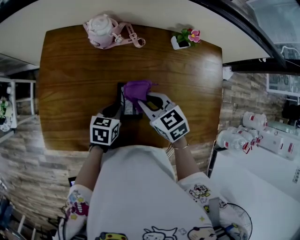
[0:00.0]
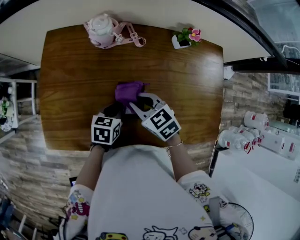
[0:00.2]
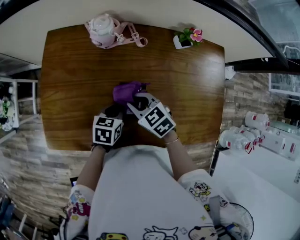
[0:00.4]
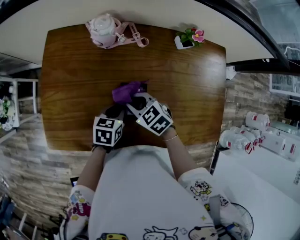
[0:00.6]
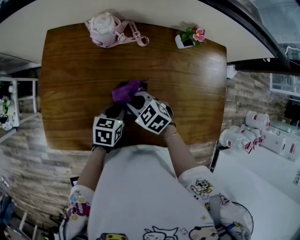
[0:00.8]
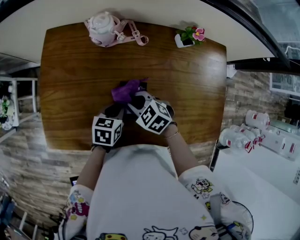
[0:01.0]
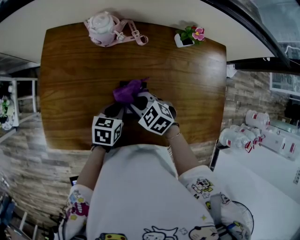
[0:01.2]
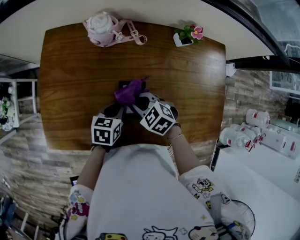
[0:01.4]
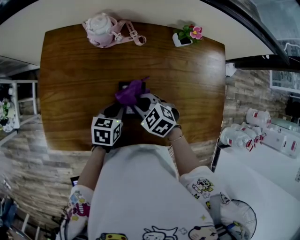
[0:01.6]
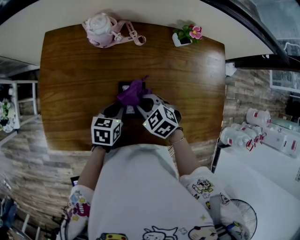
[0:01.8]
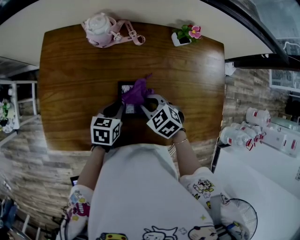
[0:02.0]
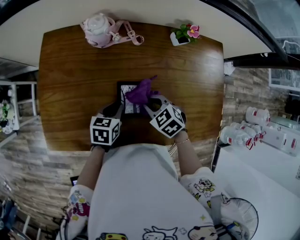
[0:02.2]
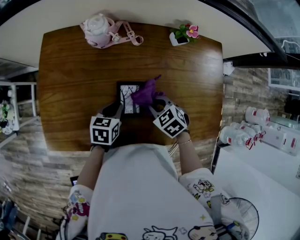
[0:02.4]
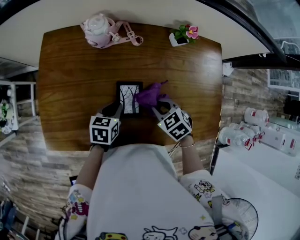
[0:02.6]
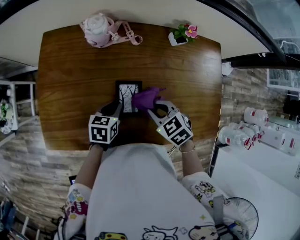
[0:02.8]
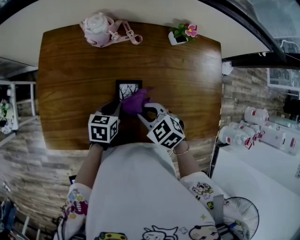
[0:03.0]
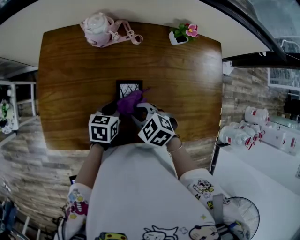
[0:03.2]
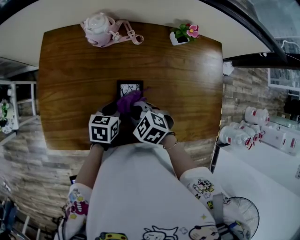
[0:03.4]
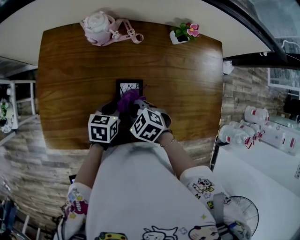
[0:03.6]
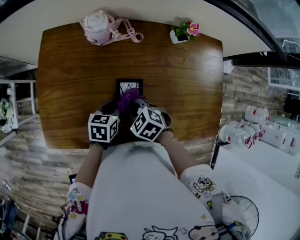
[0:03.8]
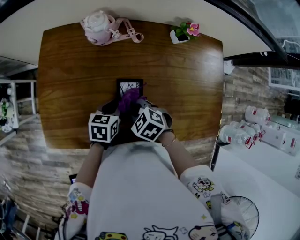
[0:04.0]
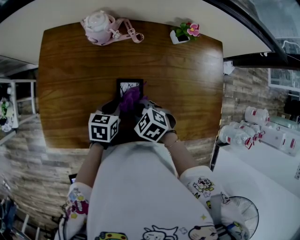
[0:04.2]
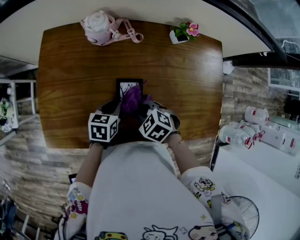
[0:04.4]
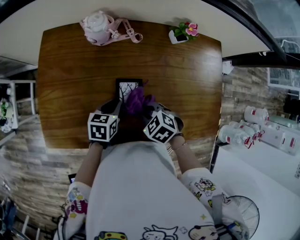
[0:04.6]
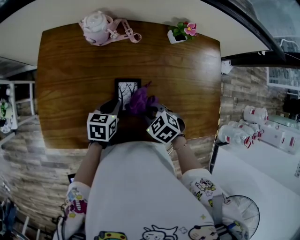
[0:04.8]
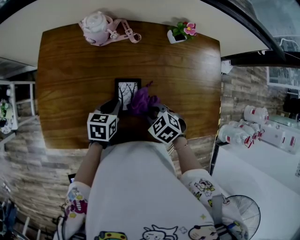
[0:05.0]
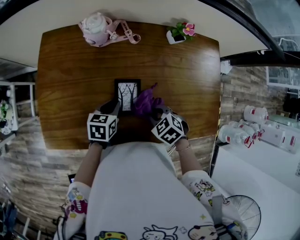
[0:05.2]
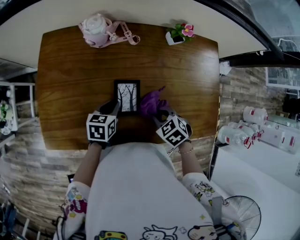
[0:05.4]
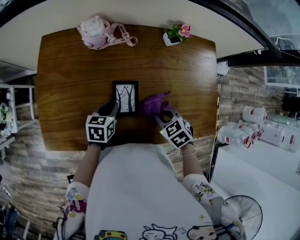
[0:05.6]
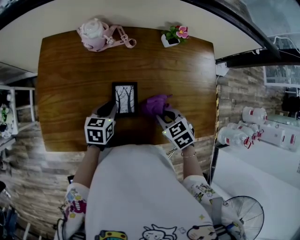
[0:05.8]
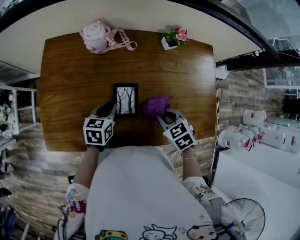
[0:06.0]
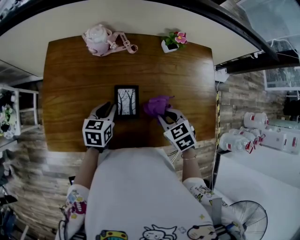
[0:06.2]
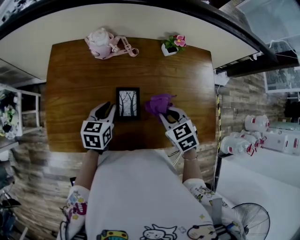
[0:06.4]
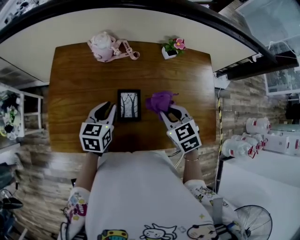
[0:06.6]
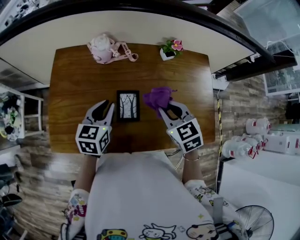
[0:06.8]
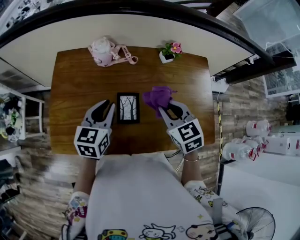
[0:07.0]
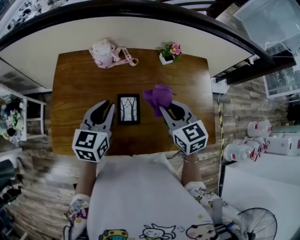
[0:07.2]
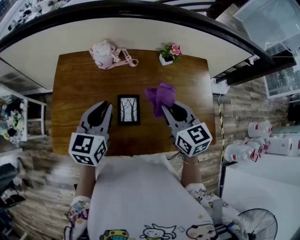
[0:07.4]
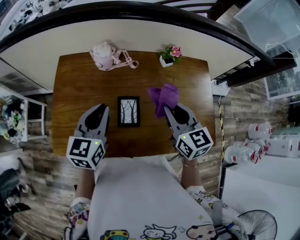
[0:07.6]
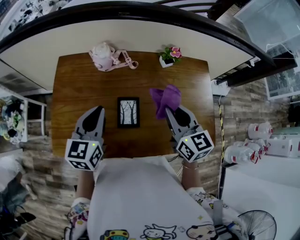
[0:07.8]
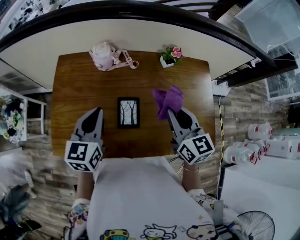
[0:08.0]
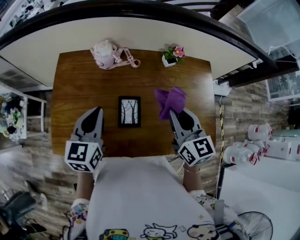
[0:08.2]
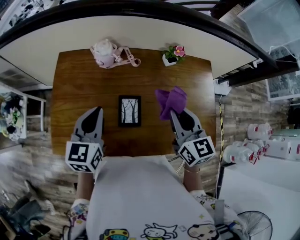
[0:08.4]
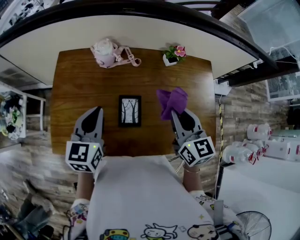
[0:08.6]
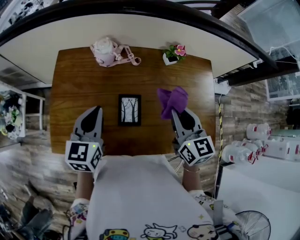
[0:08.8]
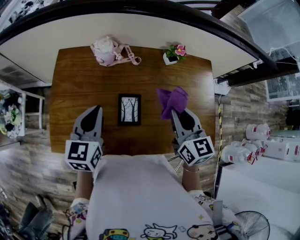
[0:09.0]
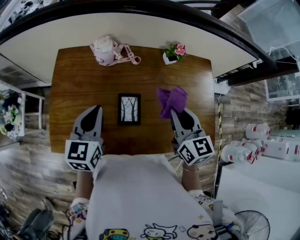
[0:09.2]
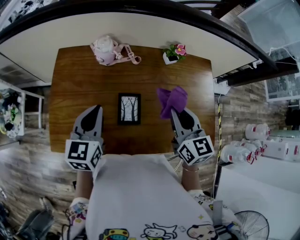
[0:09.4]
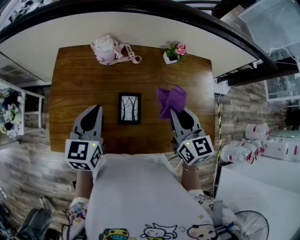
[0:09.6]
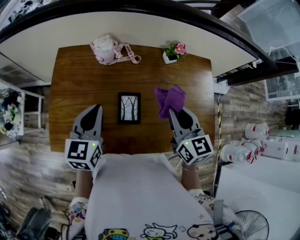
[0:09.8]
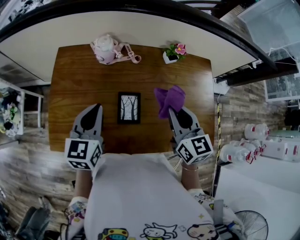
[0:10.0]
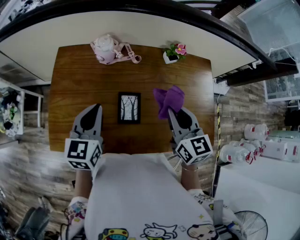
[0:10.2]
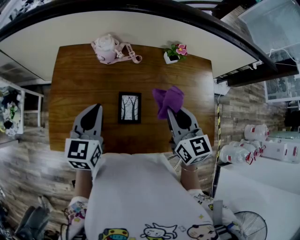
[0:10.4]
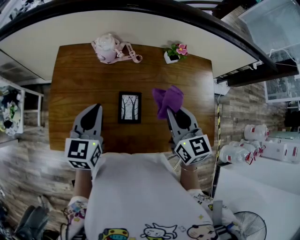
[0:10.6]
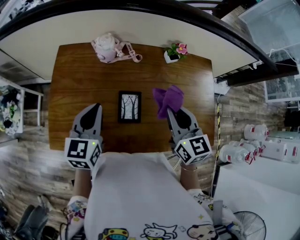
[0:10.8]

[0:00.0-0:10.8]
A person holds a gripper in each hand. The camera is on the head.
0:00.0 to 0:01.6: The right gripper moves downward, some 5 cm, and turns by some 20 degrees.
0:01.6 to 0:03.0: The right gripper moves about 10 cm to the right and comes back.
0:03.0 to 0:04.6: The right gripper changes place by roughly 5 cm.
0:04.6 to 0:06.2: The right gripper shifts approximately 10 cm to the right and upward, and swivels about 20 degrees. Meanwhile the left gripper shifts by some 5 cm.
0:06.2 to 0:07.8: The two grippers go about 20 cm upward. The right gripper points its fingers some 40 degrees further upward. The left gripper rotates roughly 20 degrees.
0:07.8 to 0:10.8: The grippers make only small movements.

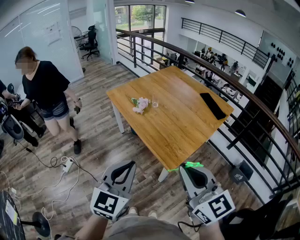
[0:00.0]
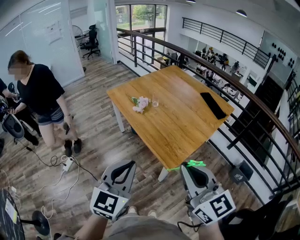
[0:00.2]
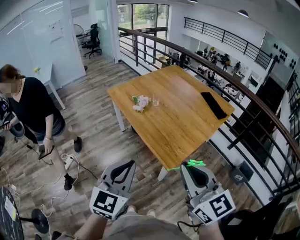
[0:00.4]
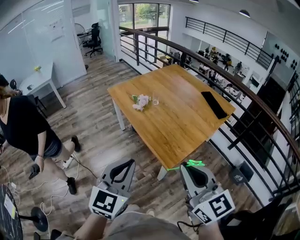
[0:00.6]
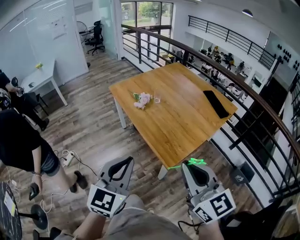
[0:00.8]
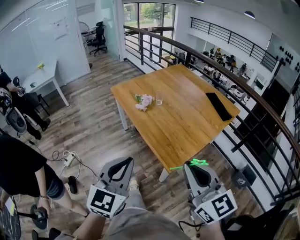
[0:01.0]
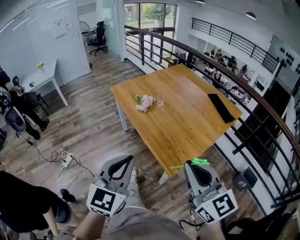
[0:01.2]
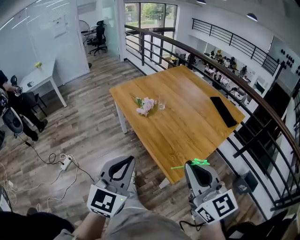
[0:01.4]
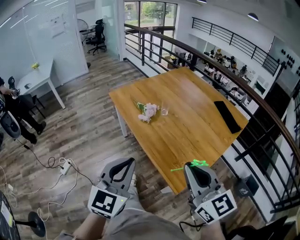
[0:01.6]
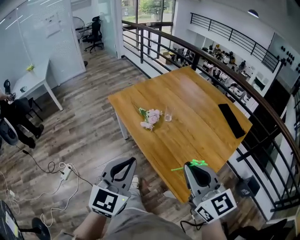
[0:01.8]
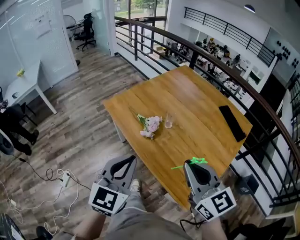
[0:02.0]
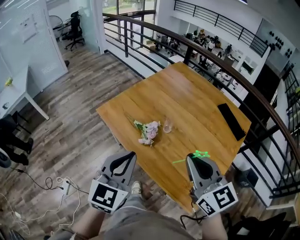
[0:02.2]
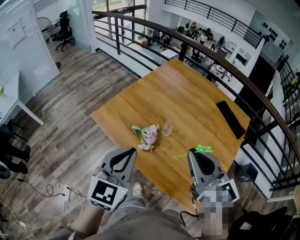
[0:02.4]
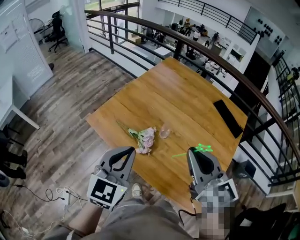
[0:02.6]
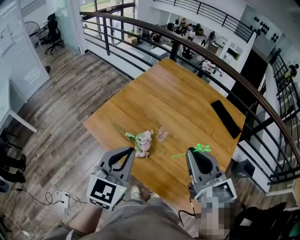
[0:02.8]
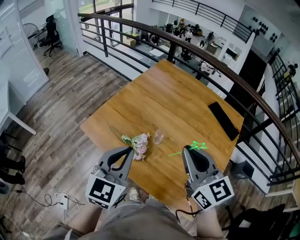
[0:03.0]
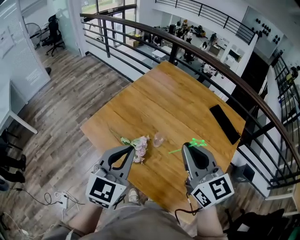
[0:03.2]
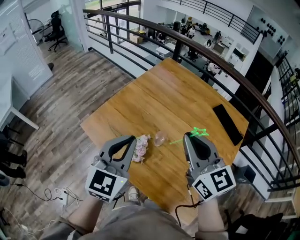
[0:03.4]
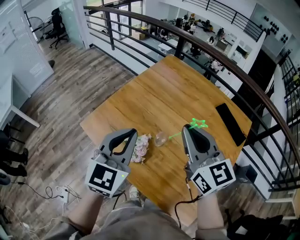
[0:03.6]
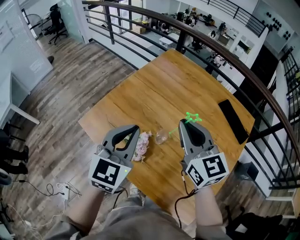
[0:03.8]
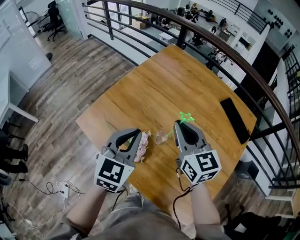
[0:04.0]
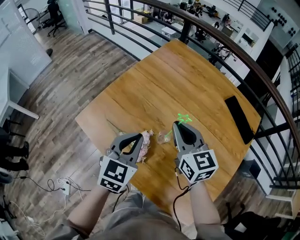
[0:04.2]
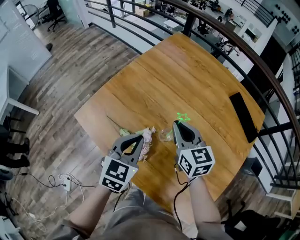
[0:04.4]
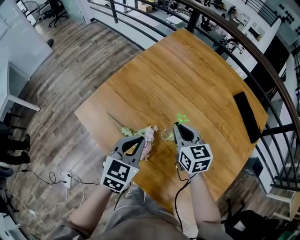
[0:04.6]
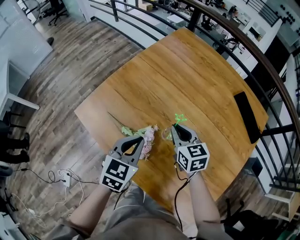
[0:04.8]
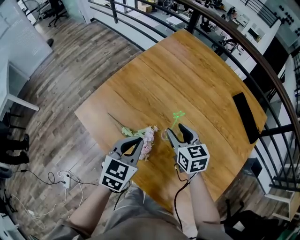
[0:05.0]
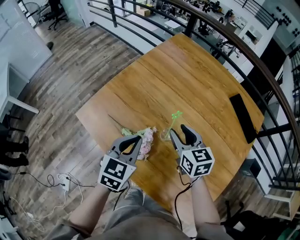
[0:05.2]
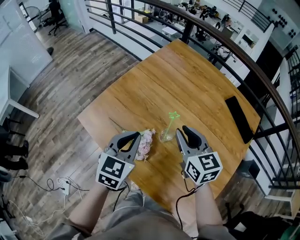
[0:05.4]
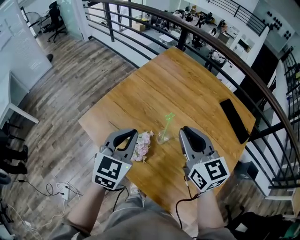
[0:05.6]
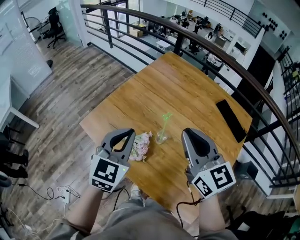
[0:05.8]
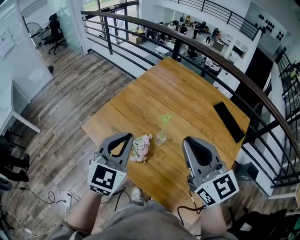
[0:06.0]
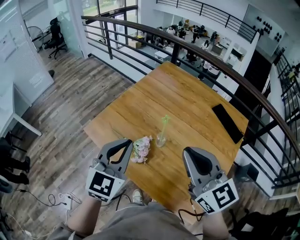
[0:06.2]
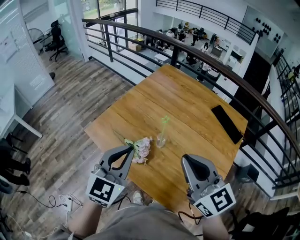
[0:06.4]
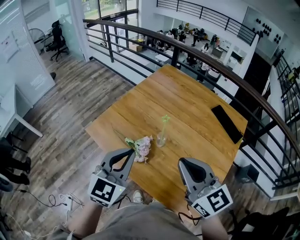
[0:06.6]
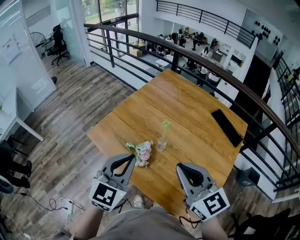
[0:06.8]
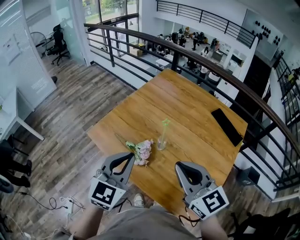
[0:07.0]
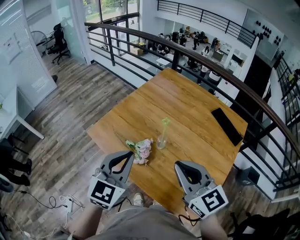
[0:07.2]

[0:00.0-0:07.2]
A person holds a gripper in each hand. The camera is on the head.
0:00.0 to 0:01.4: Both grippers travel together forward, roughly 10 cm.
0:01.4 to 0:02.8: The pair of grippers is taken forward, roughly 40 cm. The left gripper rotates some 20 degrees. Meanwhile the right gripper swivels some 20 degrees.
0:02.8 to 0:04.4: The right gripper shifts about 25 cm forward and downward, while the left gripper travels downward and forward by some 20 cm.
0:04.4 to 0:05.8: The right gripper goes roughly 20 cm upward and backward, and opens, then closes again, while the left gripper heads upward, covering about 10 cm.
0:05.8 to 0:07.2: The two grippers go roughly 10 cm backward.

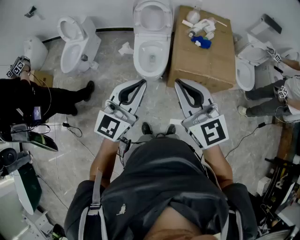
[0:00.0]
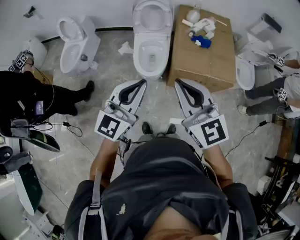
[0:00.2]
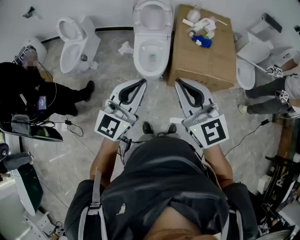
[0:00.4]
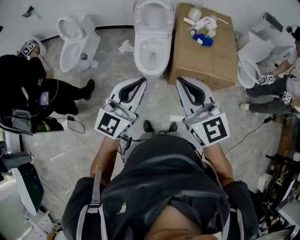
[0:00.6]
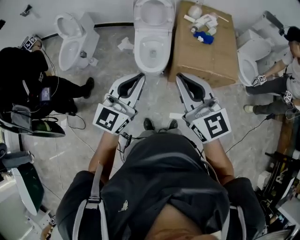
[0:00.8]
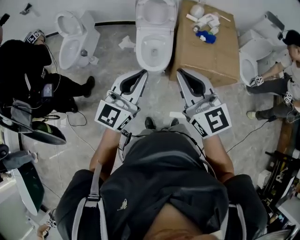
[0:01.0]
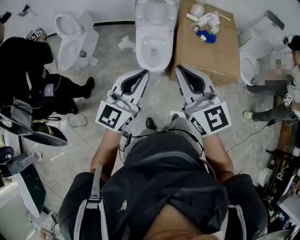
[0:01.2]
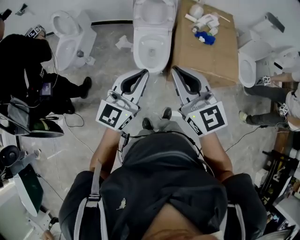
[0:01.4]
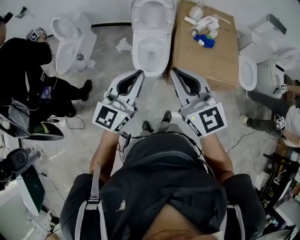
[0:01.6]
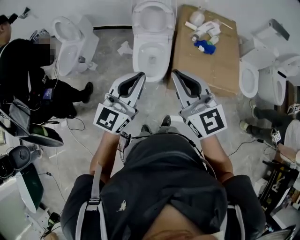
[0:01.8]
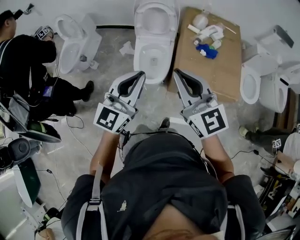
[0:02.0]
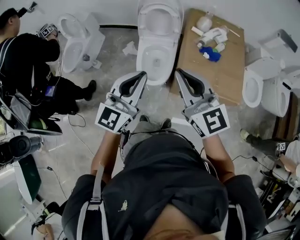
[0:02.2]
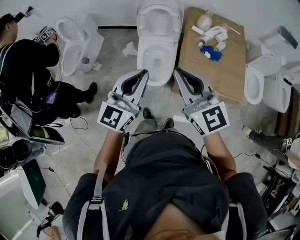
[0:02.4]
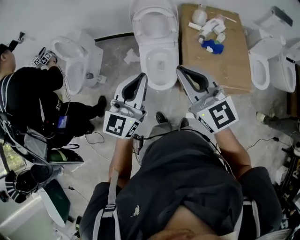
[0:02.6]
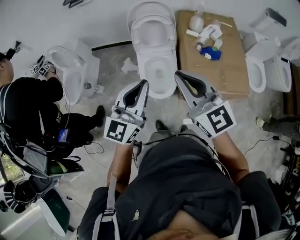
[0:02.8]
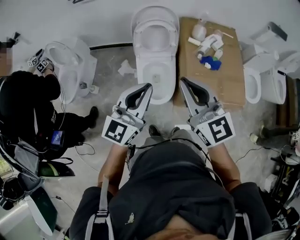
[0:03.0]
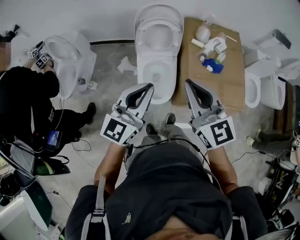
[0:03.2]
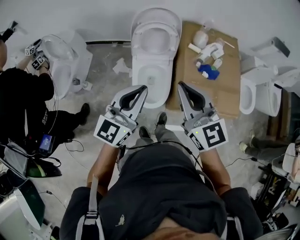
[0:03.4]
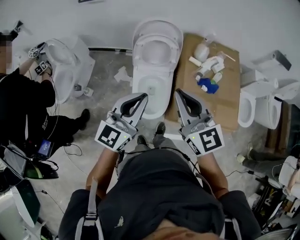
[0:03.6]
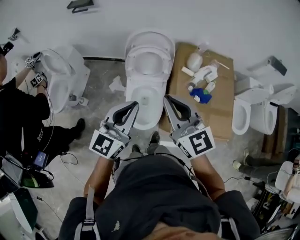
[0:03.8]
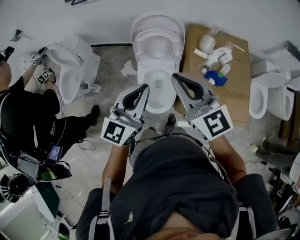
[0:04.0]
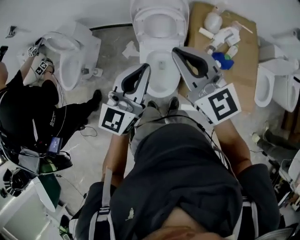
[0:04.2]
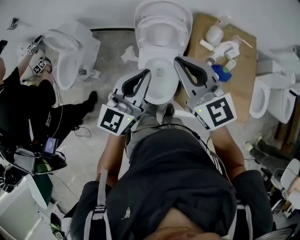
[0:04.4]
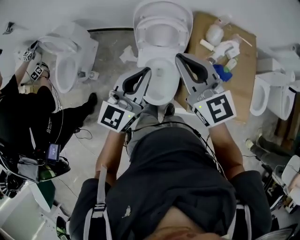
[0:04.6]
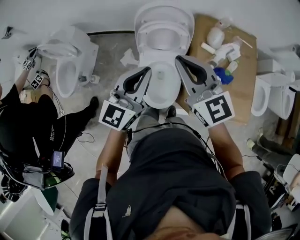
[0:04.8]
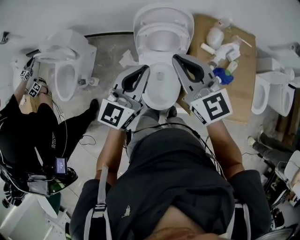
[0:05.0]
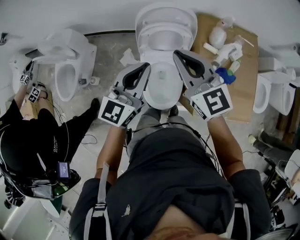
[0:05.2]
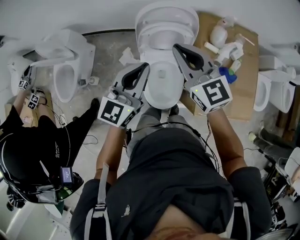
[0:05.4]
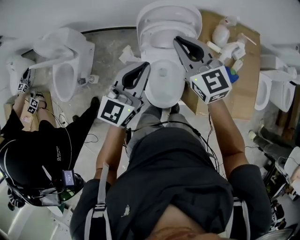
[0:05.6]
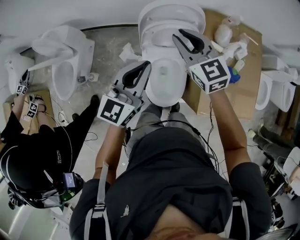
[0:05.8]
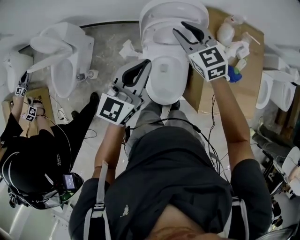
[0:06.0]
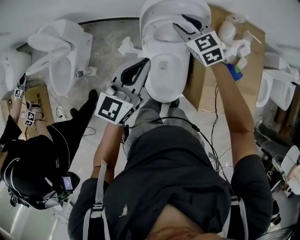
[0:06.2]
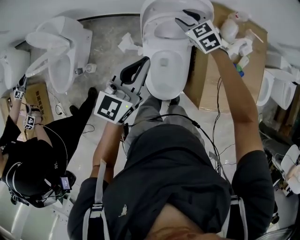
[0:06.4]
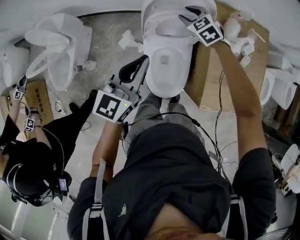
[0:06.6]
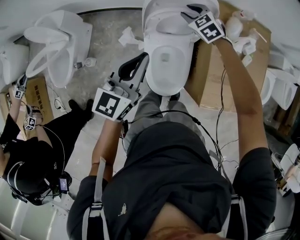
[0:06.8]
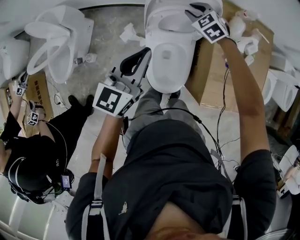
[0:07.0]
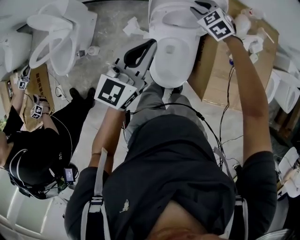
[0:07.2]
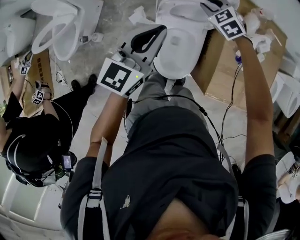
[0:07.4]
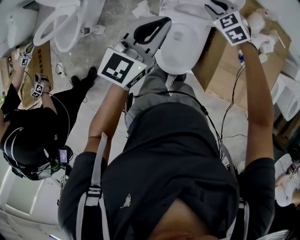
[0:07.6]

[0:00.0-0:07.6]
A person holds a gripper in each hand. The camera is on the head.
0:00.0 to 0:01.6: The grippers both shift forward by some 10 cm.
0:01.6 to 0:03.0: The two grippers go about 15 cm forward.
0:03.0 to 0:04.6: The two grippers go roughly 20 cm forward.
0:04.6 to 0:06.0: The left gripper moves forward, to the left and downward, approximately 15 cm, while the right gripper travels forward and downward by some 25 cm, and opens up.
0:06.0 to 0:07.6: The right gripper shifts about 15 cm downward, and swivels about 30 degrees.
